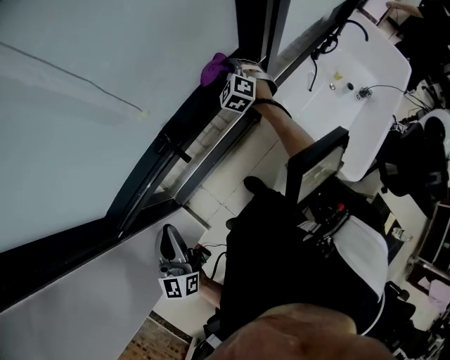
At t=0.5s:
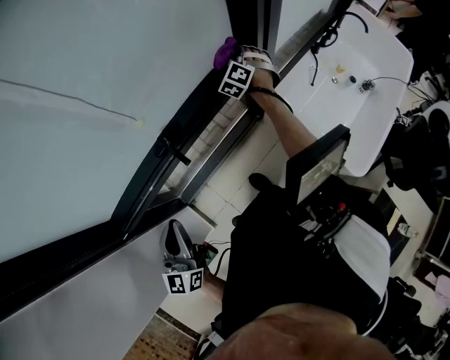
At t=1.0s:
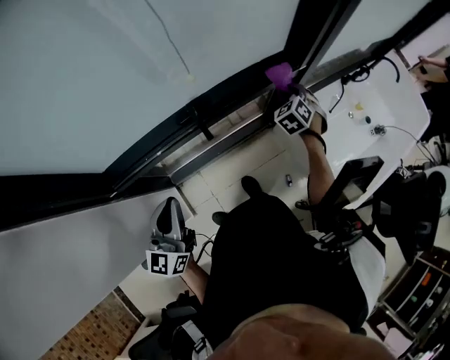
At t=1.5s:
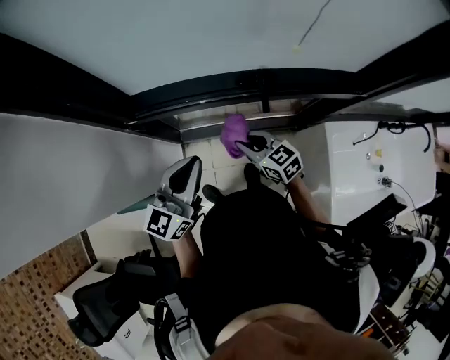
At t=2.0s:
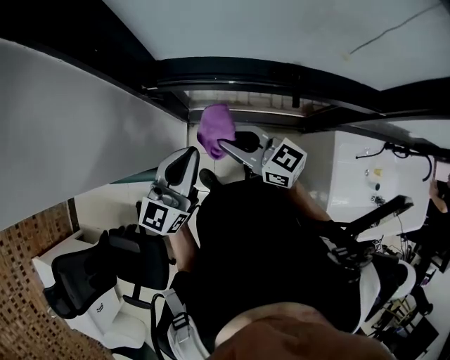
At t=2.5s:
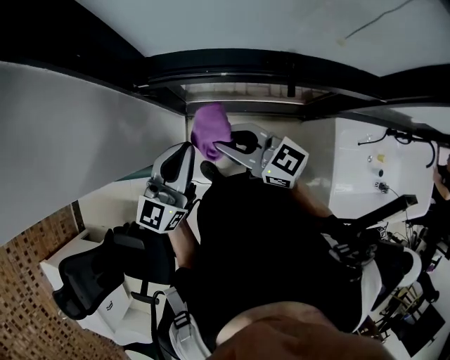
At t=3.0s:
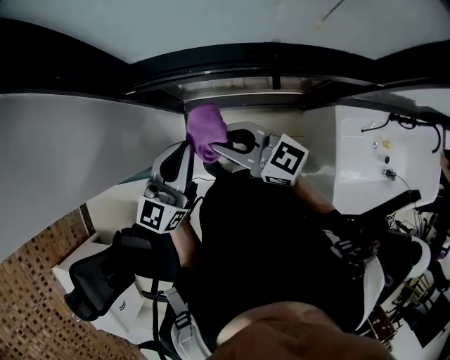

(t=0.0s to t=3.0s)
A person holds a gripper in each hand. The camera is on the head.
t=0.0s - t=1.5s: The right gripper changes place by roughly 40 cm, and turns by about 70 degrees.
t=1.5s - t=3.0s: The right gripper heads upward and to the left, covering roughly 15 cm, and rotates about 30 degrees.

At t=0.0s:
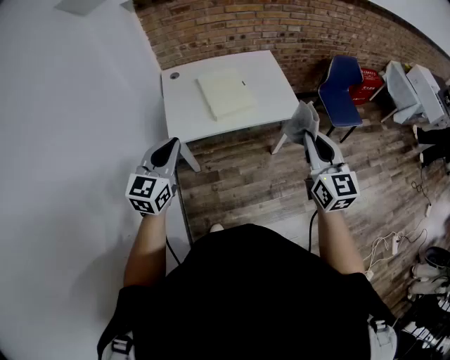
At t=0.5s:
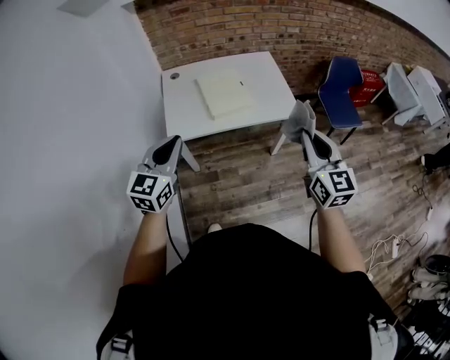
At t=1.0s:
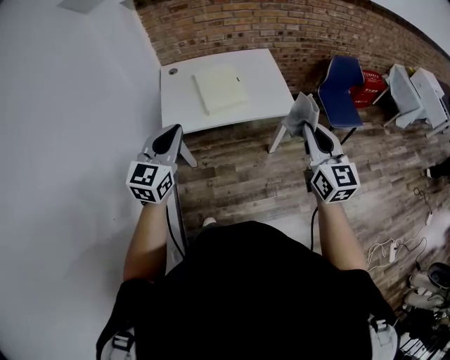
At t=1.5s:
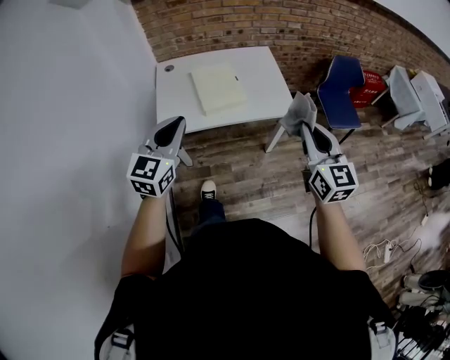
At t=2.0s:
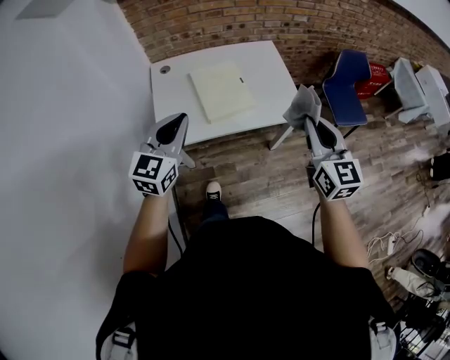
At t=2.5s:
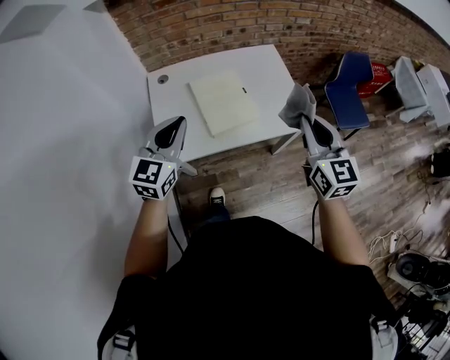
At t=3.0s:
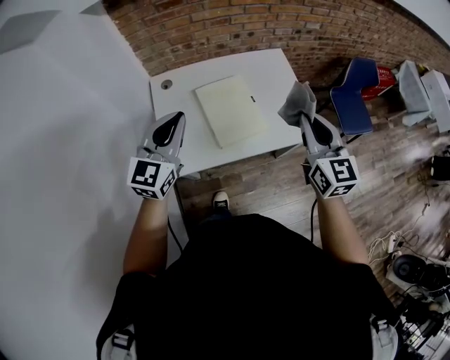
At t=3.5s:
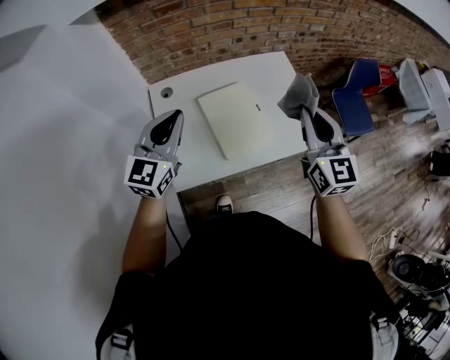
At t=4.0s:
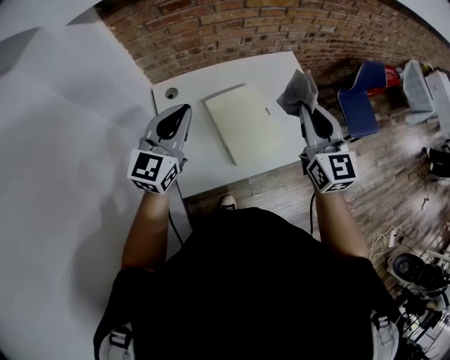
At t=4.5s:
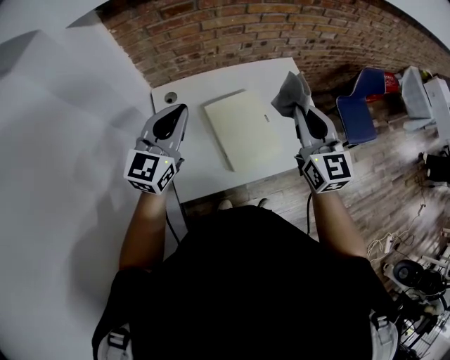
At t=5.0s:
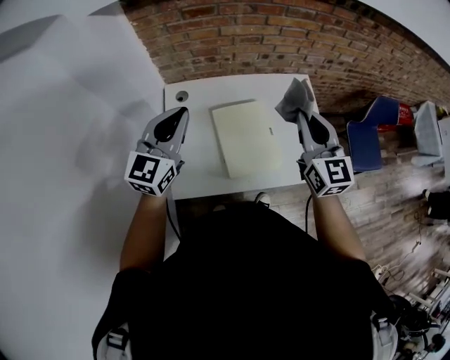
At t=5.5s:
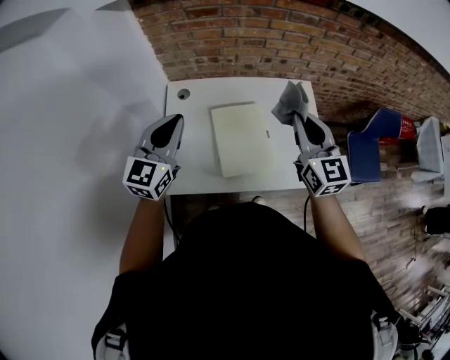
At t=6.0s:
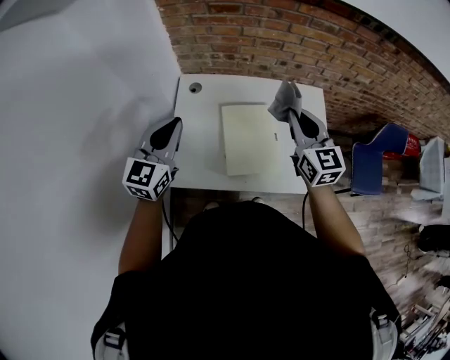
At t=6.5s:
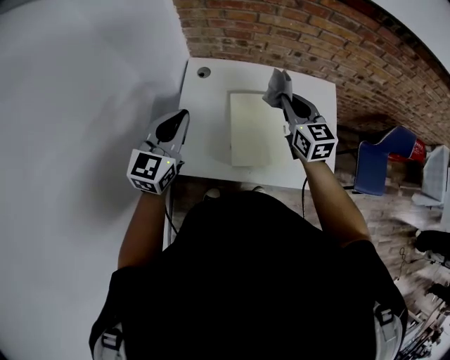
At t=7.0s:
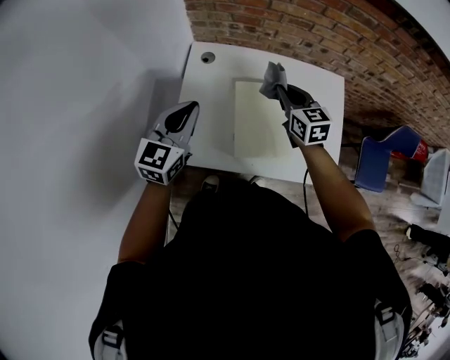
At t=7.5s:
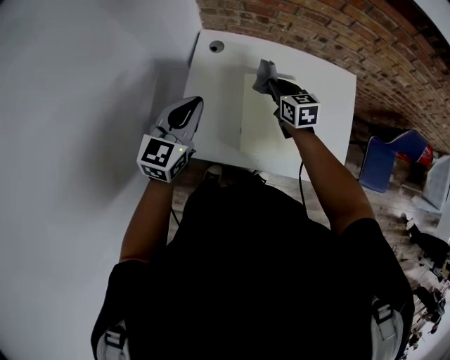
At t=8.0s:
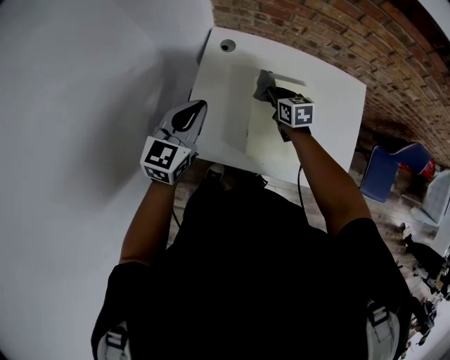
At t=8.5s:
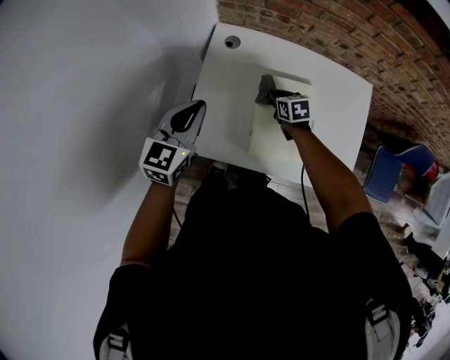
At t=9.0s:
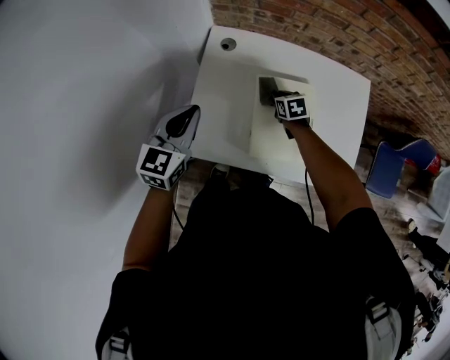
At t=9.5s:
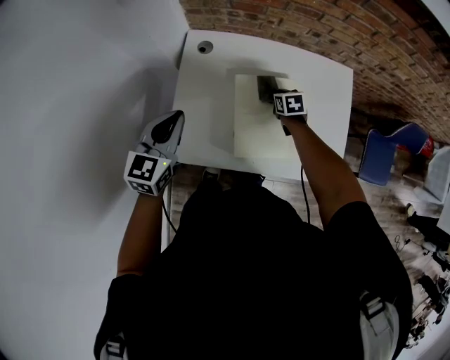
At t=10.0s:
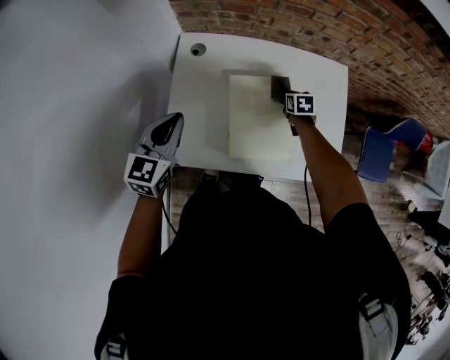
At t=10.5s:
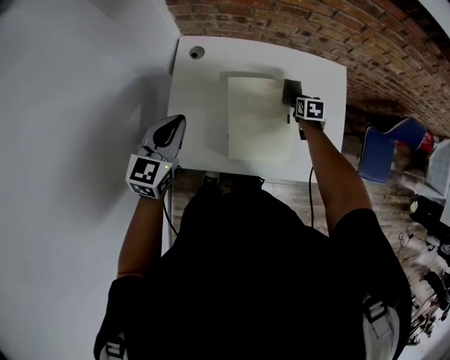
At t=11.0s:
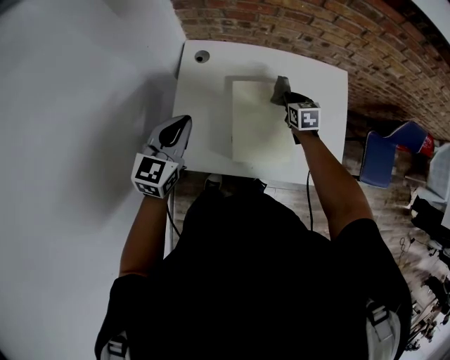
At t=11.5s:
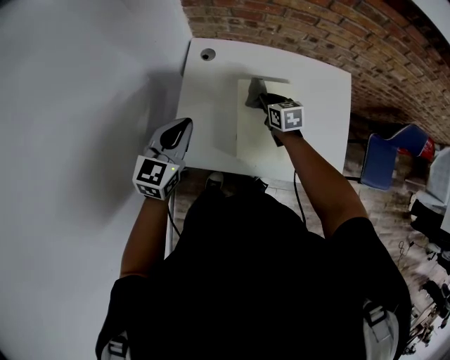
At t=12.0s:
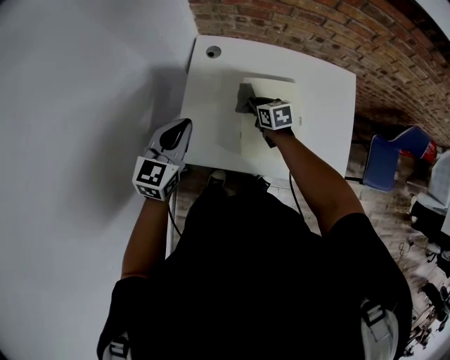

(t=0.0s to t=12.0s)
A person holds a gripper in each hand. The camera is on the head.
t=0.0s - t=2.0s: The grippers both shift forward by some 15 cm.
t=2.0s - t=4.0s: Both grippers travel together forward and to the left, about 30 cm.
t=4.0s - t=6.0s: The left gripper changes place by about 5 cm, and changes its angle by roughly 20 degrees. The right gripper travels forward by roughly 10 cm, and swivels about 20 degrees.
t=6.0s - t=8.0s: The left gripper shifts about 10 cm downward. Meanwhile the right gripper moves downward, to the left and forward, approximately 35 cm, and tips its fingers downward by about 30 degrees.
t=8.0s - t=10.0s: The right gripper moves to the right and downward, about 20 cm, and swivels about 30 degrees.
t=10.0s - t=12.0s: The right gripper travels to the left by roughly 20 cm, and rotates roughly 20 degrees.

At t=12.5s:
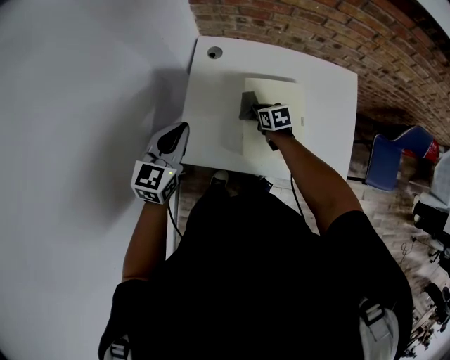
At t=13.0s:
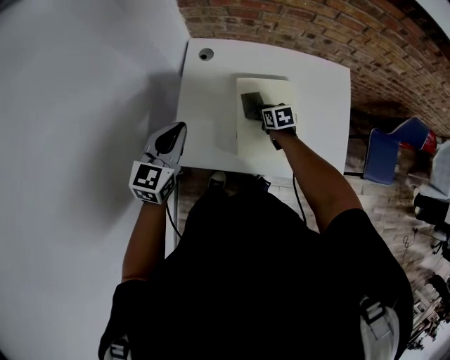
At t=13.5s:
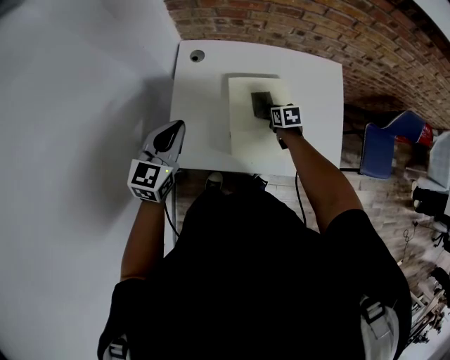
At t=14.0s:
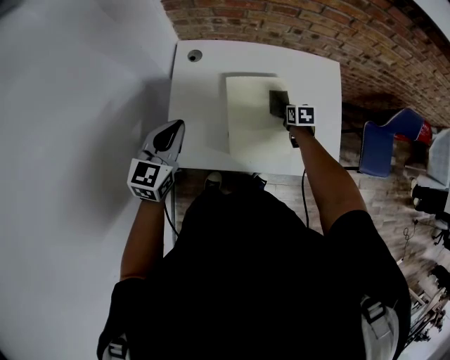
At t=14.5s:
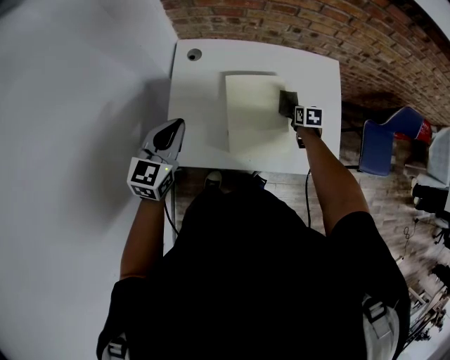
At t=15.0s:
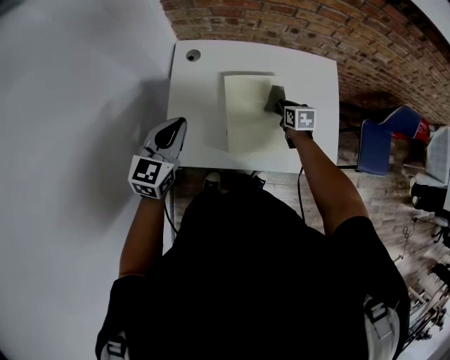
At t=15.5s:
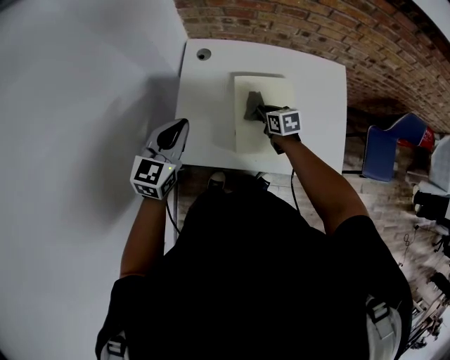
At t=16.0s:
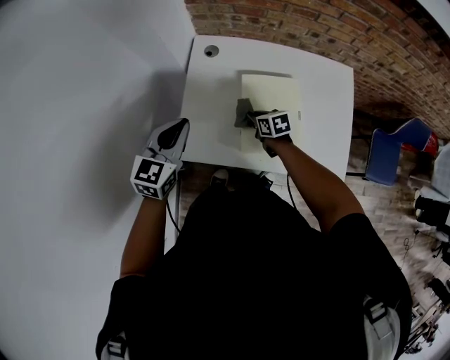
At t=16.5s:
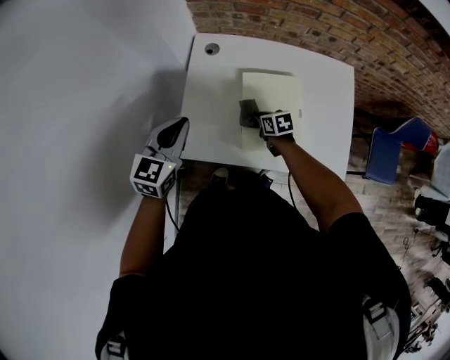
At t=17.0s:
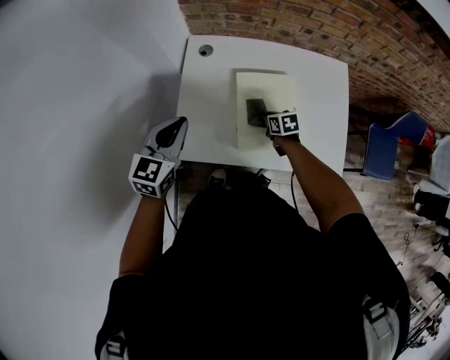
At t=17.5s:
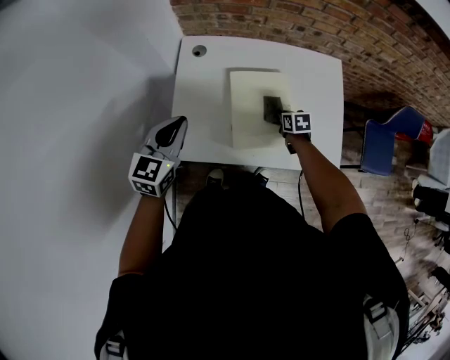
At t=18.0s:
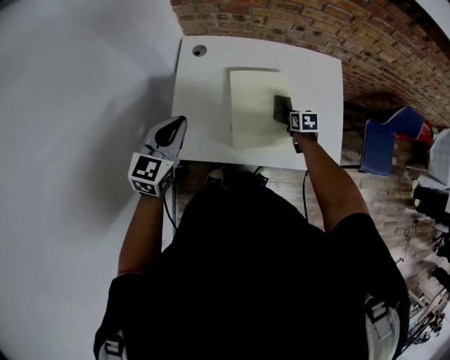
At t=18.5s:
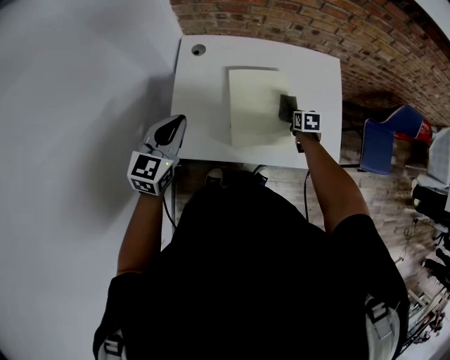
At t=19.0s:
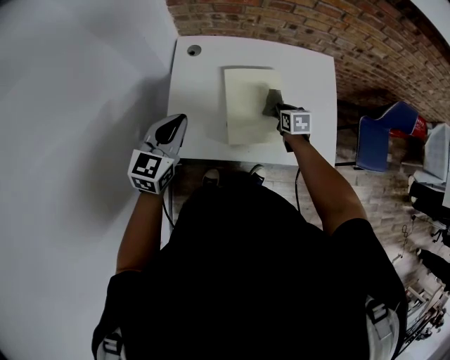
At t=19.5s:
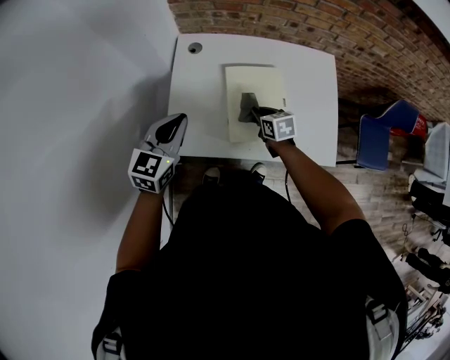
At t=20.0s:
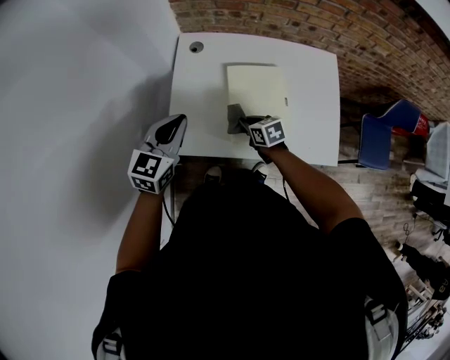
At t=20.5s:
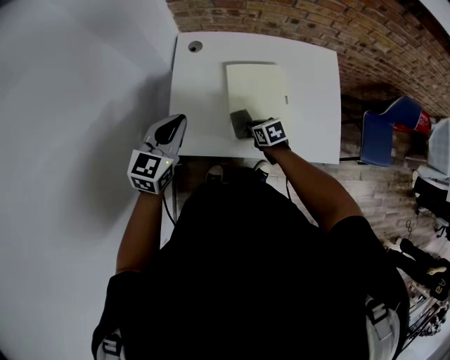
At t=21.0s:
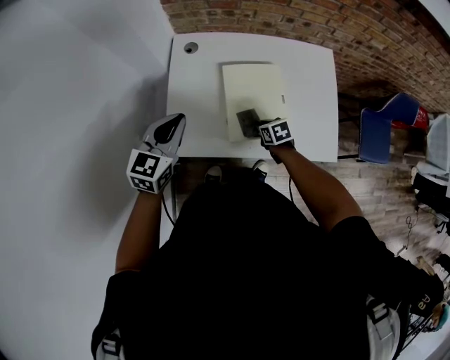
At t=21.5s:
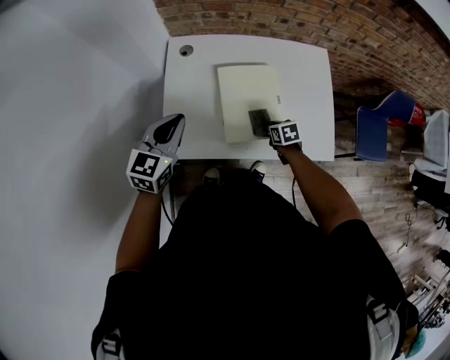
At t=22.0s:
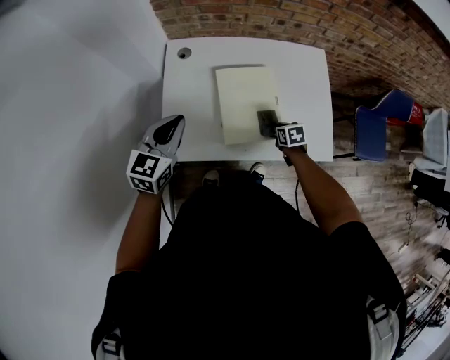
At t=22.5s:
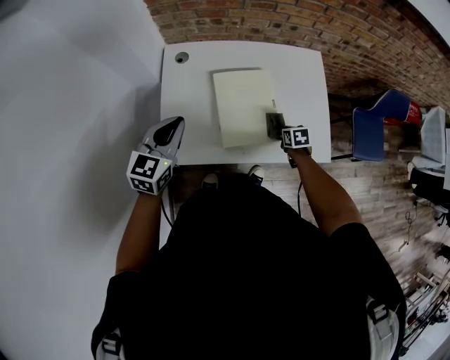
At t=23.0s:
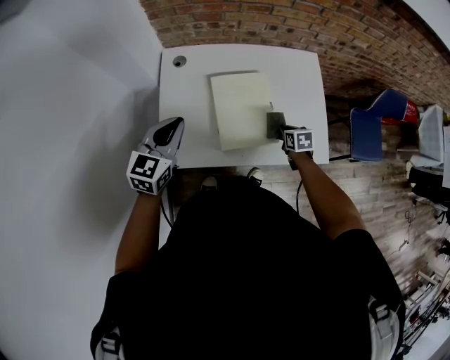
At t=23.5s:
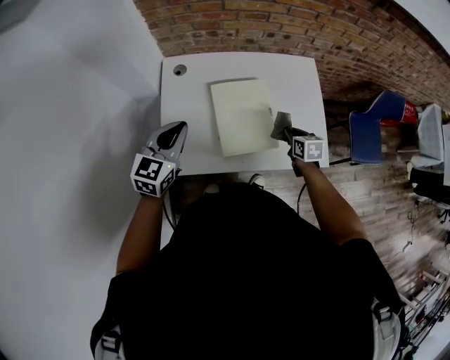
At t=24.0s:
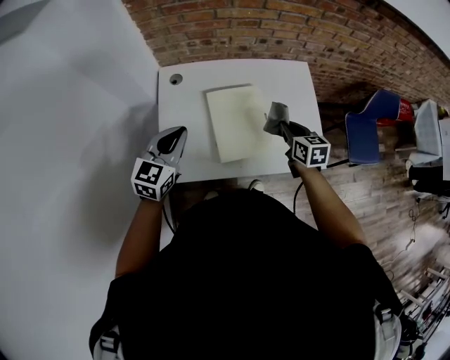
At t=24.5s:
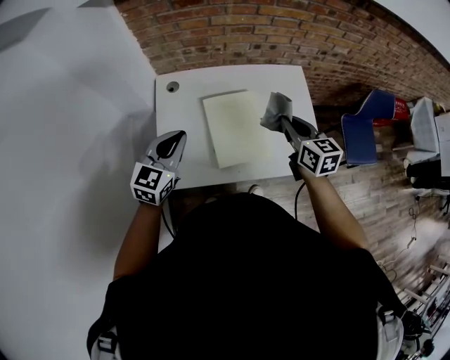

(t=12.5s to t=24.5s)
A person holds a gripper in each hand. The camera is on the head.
t=12.5s - t=14.5s: The right gripper is displaced to the right by approximately 25 cm, and turns by roughly 20 degrees.
t=14.5s - t=16.5s: The right gripper travels to the left by approximately 25 cm, and swivels approximately 30 degrees.
t=16.5s - t=18.5s: The right gripper goes roughly 20 cm to the right, and changes its angle by roughly 30 degrees.
t=18.5s - t=20.5s: The right gripper goes approximately 20 cm to the left and backward, and changes its angle by roughly 30 degrees.
t=20.5s - t=22.5s: The right gripper goes some 20 cm to the right, and changes its angle by some 20 degrees.
t=22.5s - t=24.5s: The right gripper shifts some 30 cm upward, and tips its fingers upward by about 40 degrees.
